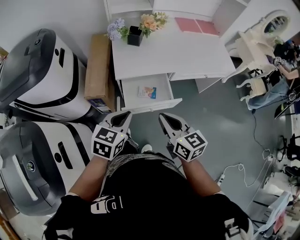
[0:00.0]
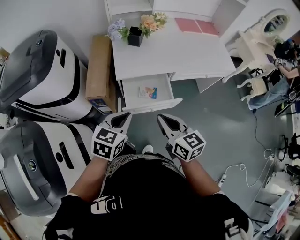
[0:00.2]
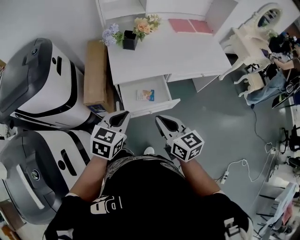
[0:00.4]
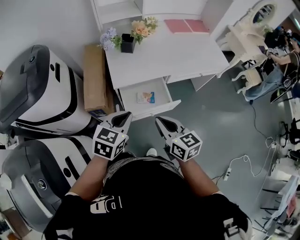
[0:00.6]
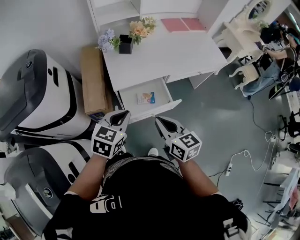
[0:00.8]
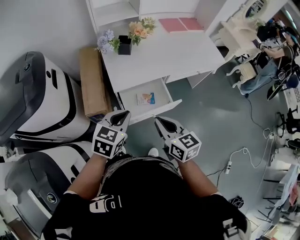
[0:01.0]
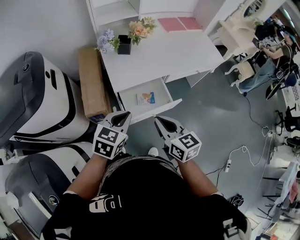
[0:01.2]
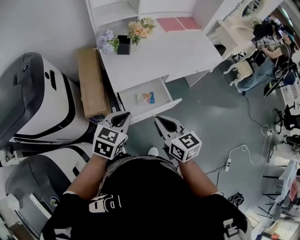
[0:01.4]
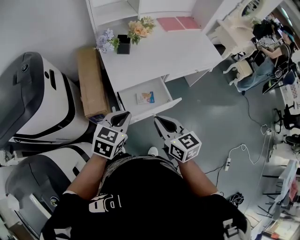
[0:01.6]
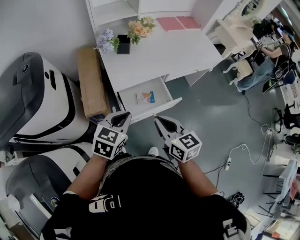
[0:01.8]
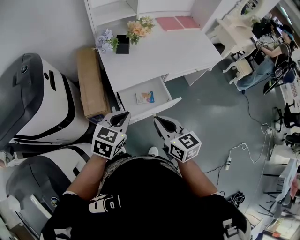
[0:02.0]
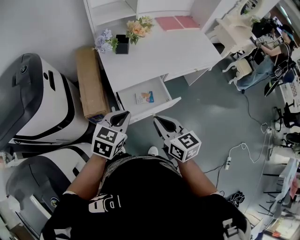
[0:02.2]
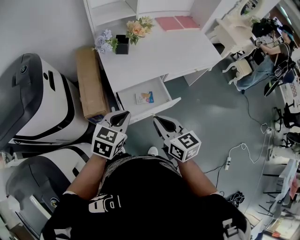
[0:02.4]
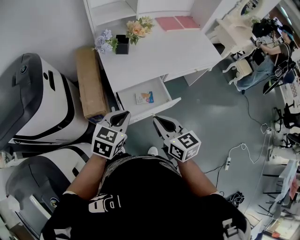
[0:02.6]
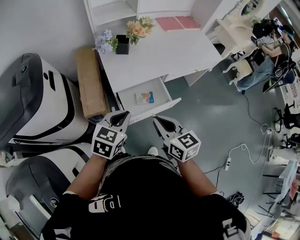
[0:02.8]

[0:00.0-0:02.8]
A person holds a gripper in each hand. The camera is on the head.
0:00.0 to 0:01.4: The grippers both shift to the left by some 5 cm.
0:01.4 to 0:02.8: Both grippers stay put.

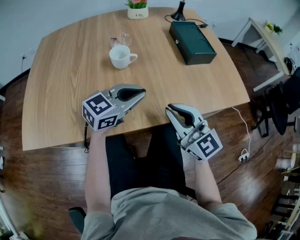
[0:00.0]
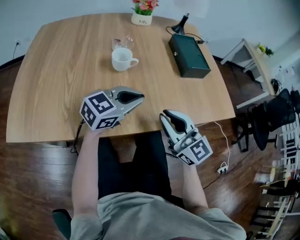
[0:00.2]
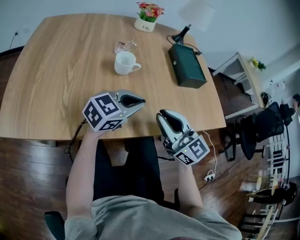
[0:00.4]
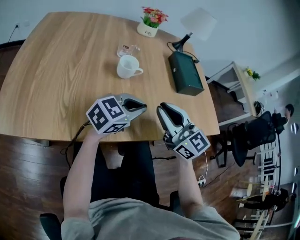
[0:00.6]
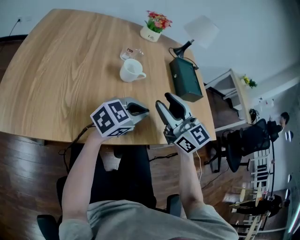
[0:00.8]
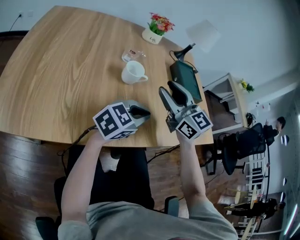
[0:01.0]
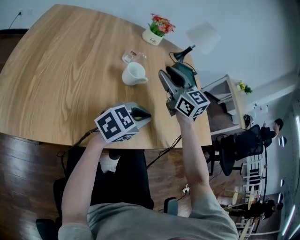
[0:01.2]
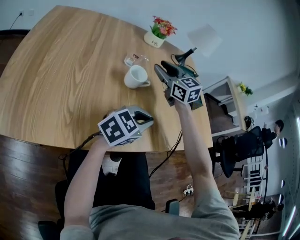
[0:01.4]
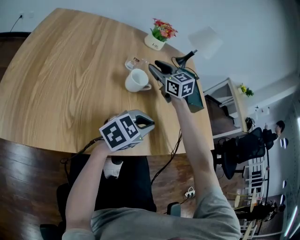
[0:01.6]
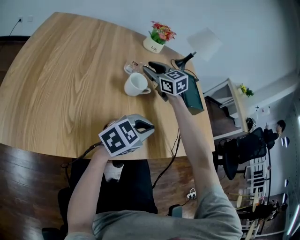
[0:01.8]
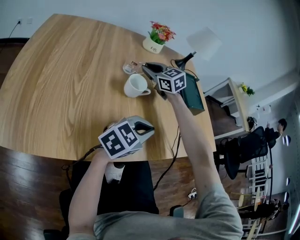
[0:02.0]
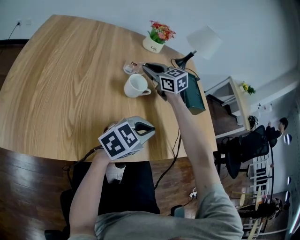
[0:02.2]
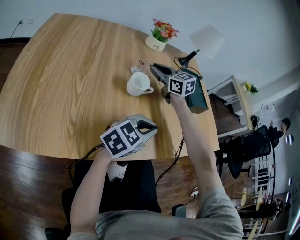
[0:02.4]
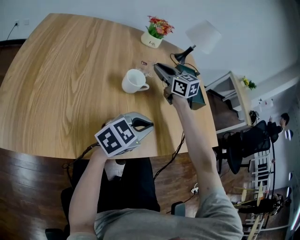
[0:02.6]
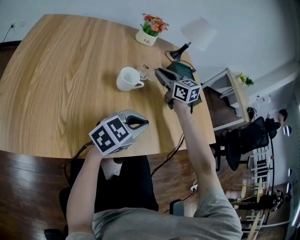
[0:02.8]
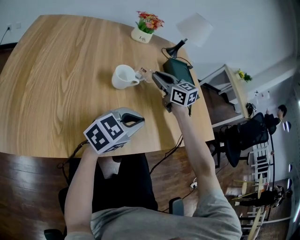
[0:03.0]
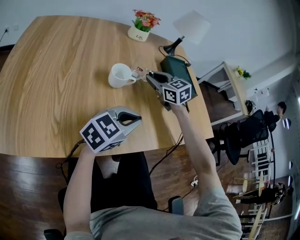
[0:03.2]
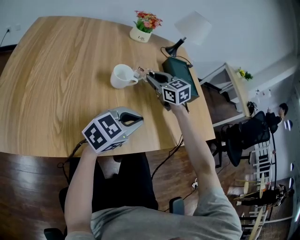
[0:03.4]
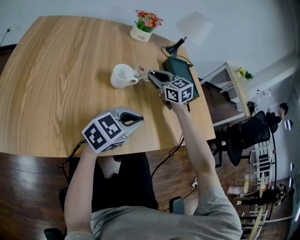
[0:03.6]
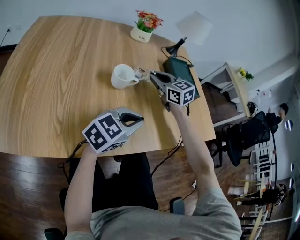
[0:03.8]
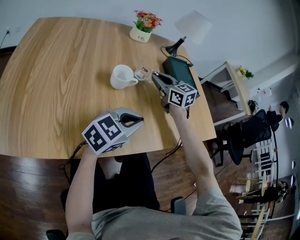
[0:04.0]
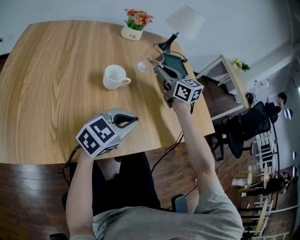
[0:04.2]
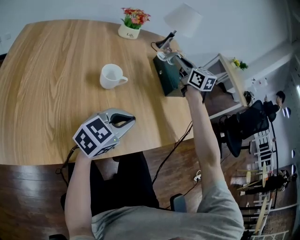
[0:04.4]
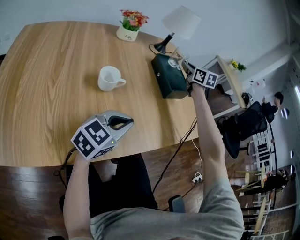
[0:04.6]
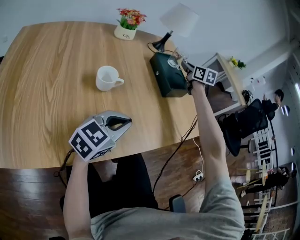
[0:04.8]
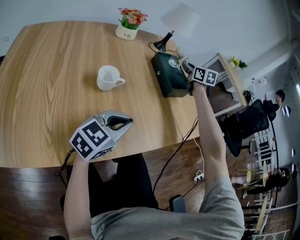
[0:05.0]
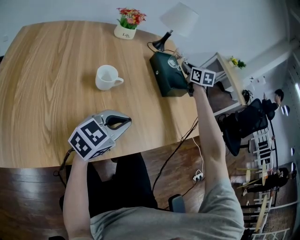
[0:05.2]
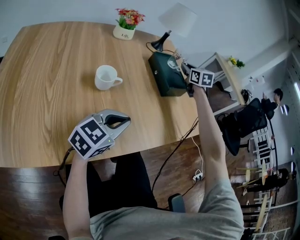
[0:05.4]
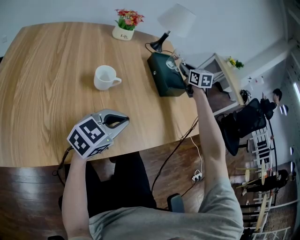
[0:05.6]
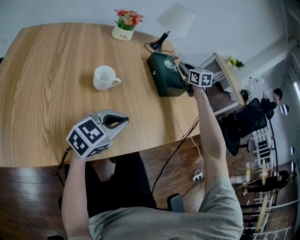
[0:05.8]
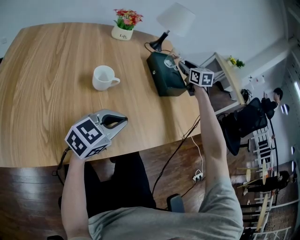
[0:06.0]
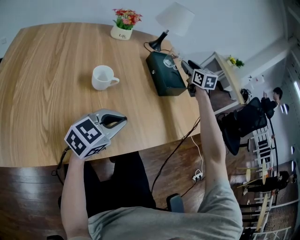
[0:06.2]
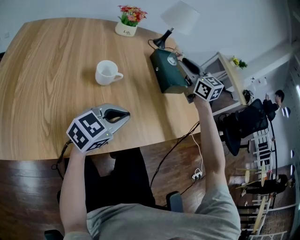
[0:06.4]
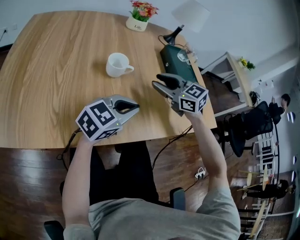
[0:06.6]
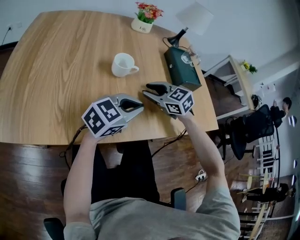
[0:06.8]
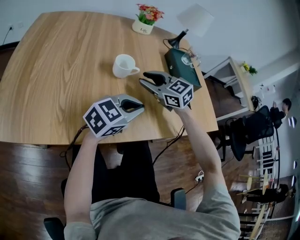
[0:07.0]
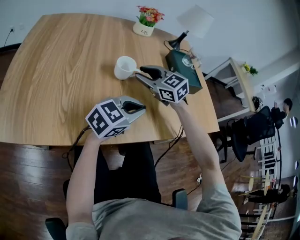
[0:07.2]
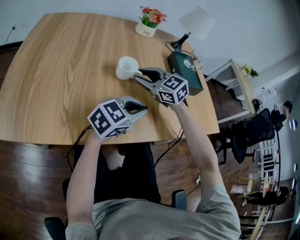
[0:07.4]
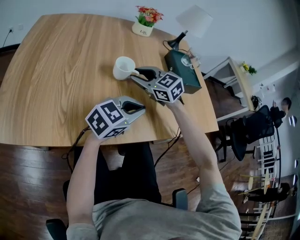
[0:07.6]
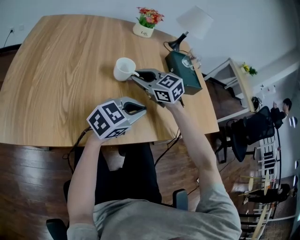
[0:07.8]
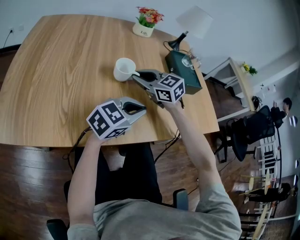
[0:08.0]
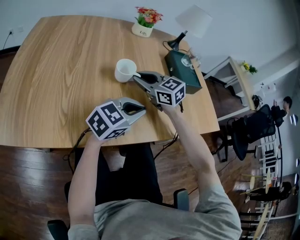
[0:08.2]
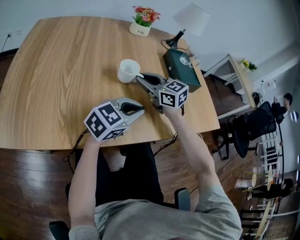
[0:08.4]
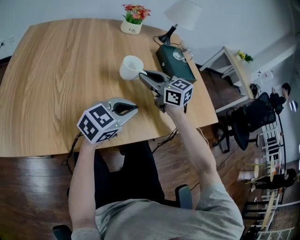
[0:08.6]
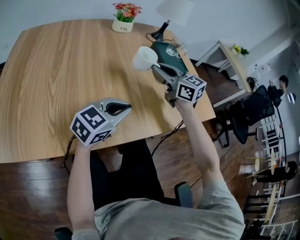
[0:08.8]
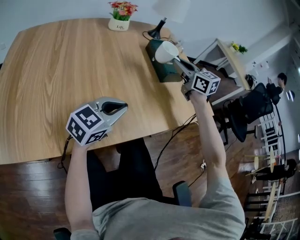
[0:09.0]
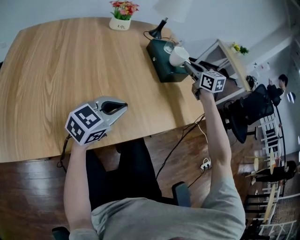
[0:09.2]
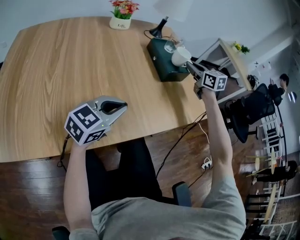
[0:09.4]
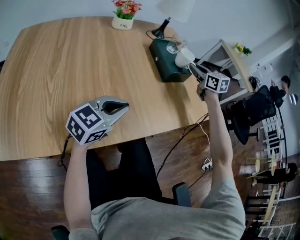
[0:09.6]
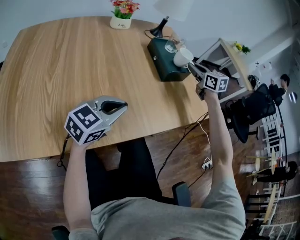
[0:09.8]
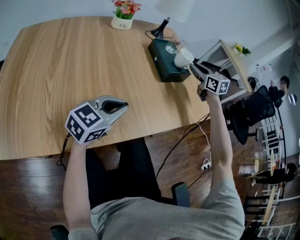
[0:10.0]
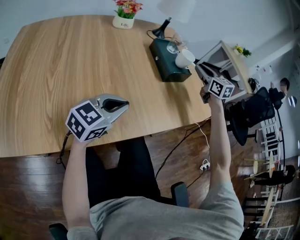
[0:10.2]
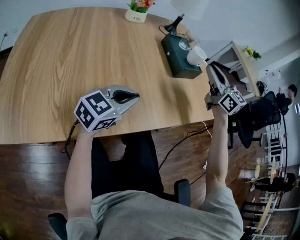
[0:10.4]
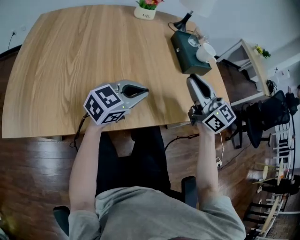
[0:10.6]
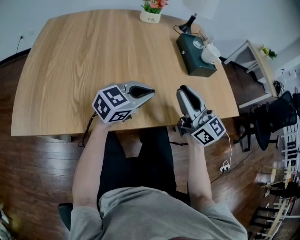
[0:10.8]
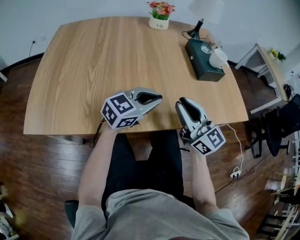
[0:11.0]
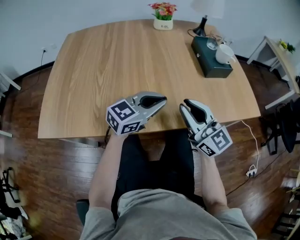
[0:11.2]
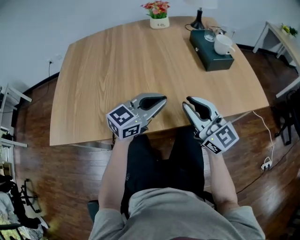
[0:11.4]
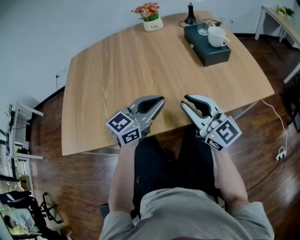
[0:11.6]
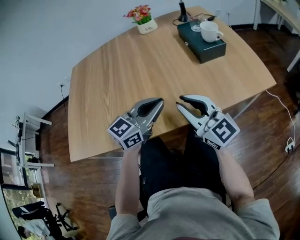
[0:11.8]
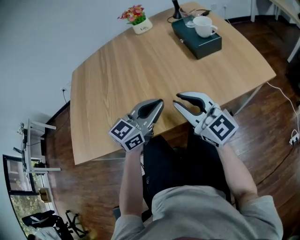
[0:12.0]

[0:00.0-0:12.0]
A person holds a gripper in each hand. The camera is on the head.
0:00.0 to 0:01.6: The right gripper shifts approximately 35 cm forward and to the left, swivels roughly 20 degrees, and opens its fingers.
0:01.6 to 0:03.0: The right gripper shifts about 10 cm to the right.
0:03.0 to 0:04.4: The right gripper goes approximately 15 cm to the right, upward and forward.
0:04.4 to 0:06.0: The right gripper moves to the right and forward, roughly 15 cm, turns by roughly 20 degrees, and opens its fingers.
0:06.0 to 0:07.6: The right gripper travels to the left and backward by roughly 40 cm, and rotates some 50 degrees.
0:07.6 to 0:09.0: The right gripper moves to the right and upward, some 25 cm, and changes its angle by roughly 40 degrees.
0:09.0 to 0:10.4: The right gripper moves to the right and upward, roughly 10 cm.
0:10.4 to 0:12.0: The right gripper moves backward, to the left and downward, some 25 cm.

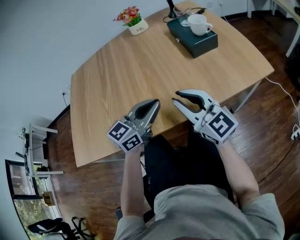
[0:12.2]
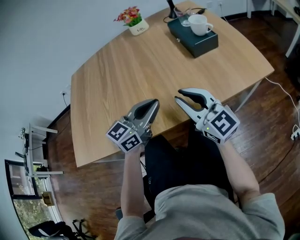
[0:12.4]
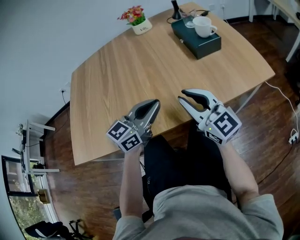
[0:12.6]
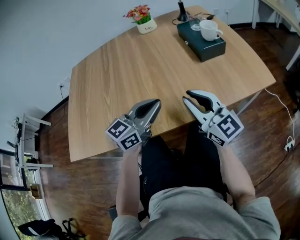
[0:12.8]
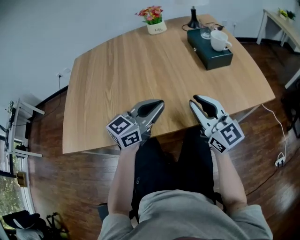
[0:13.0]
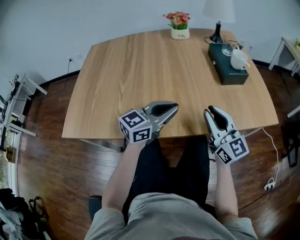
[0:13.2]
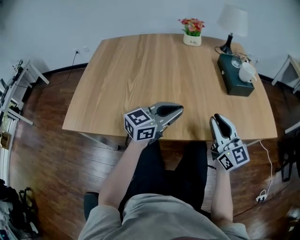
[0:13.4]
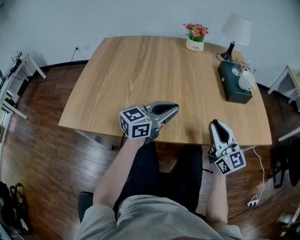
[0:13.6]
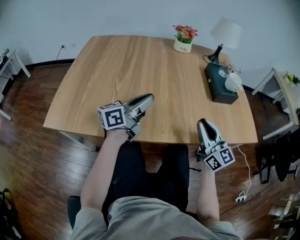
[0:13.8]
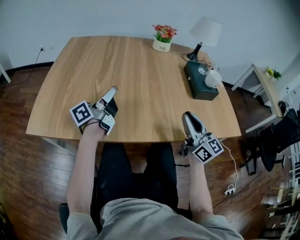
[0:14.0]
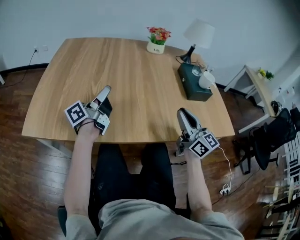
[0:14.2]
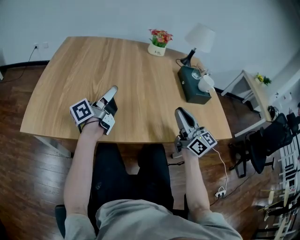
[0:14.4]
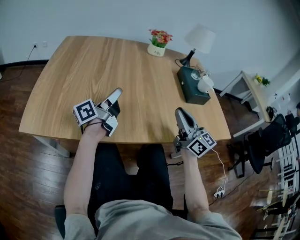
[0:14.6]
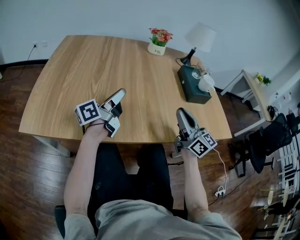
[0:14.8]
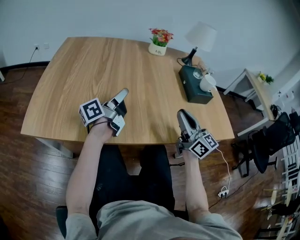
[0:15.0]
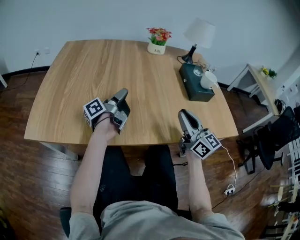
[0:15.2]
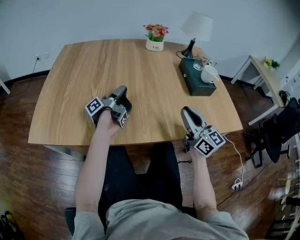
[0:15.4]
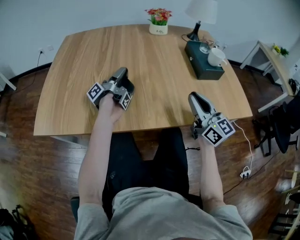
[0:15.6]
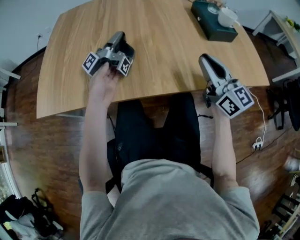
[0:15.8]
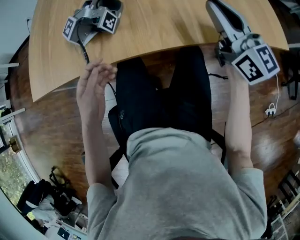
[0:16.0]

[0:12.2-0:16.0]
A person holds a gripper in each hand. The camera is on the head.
0:12.2 to 0:13.4: There are only small adjustments of the grippers.
0:13.4 to 0:14.8: The left gripper heads to the left and forward, covering about 15 cm, and twists approximately 50 degrees counterclockwise, seen from behind.
0:14.8 to 0:16.0: The left gripper heads forward, covering some 10 cm, and rotates some 40 degrees.

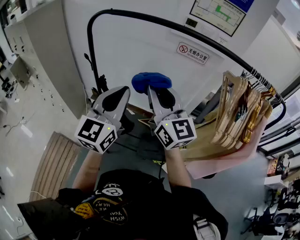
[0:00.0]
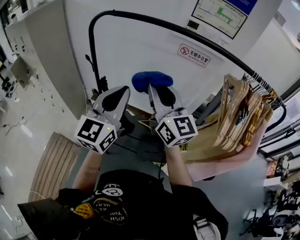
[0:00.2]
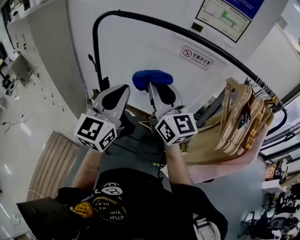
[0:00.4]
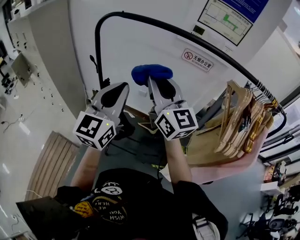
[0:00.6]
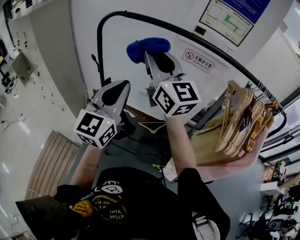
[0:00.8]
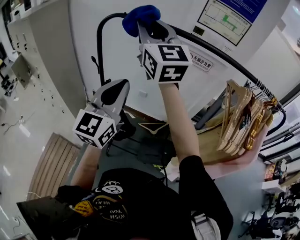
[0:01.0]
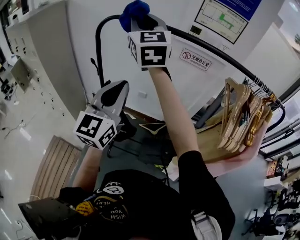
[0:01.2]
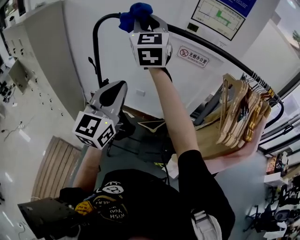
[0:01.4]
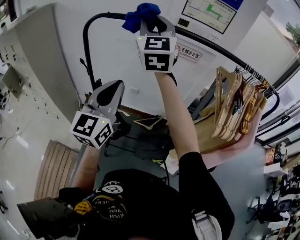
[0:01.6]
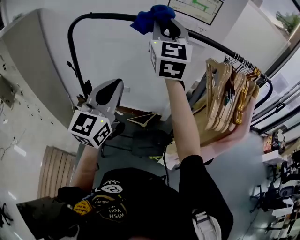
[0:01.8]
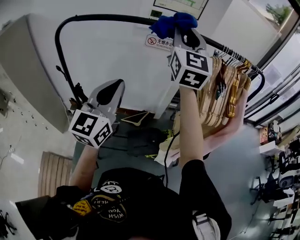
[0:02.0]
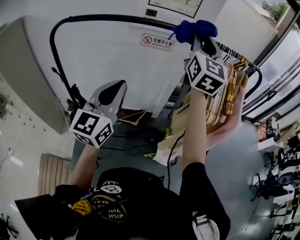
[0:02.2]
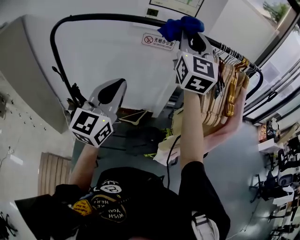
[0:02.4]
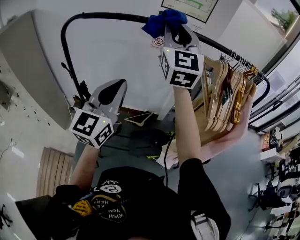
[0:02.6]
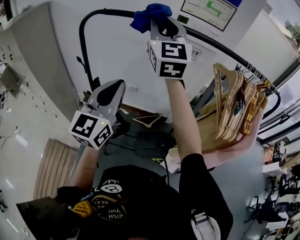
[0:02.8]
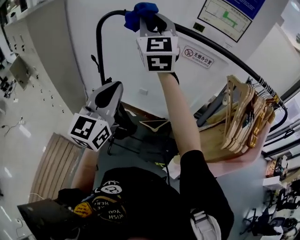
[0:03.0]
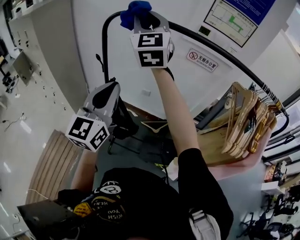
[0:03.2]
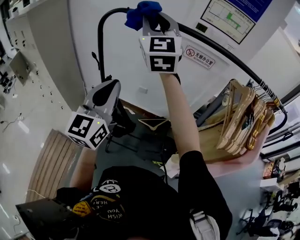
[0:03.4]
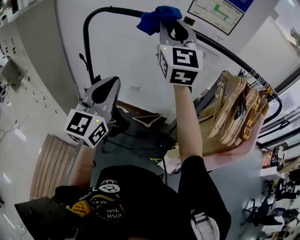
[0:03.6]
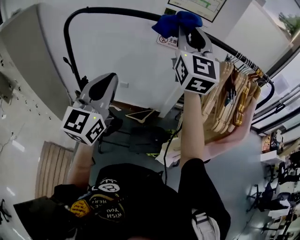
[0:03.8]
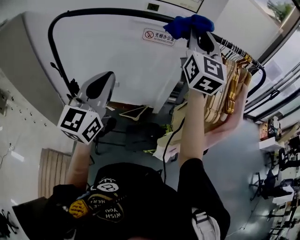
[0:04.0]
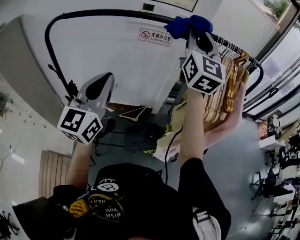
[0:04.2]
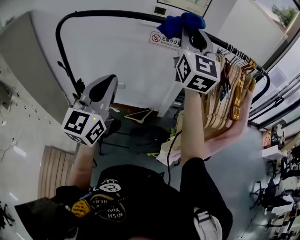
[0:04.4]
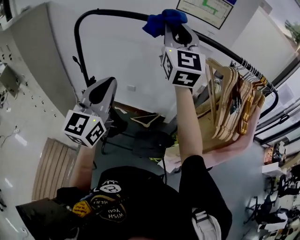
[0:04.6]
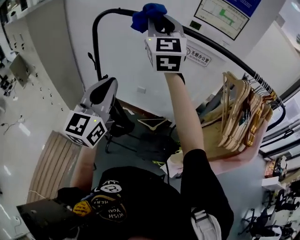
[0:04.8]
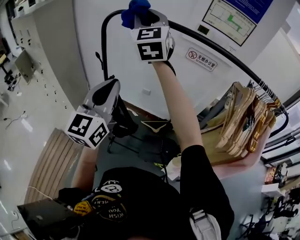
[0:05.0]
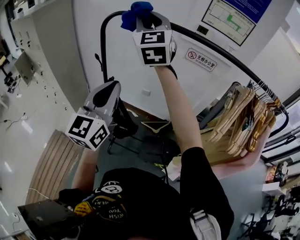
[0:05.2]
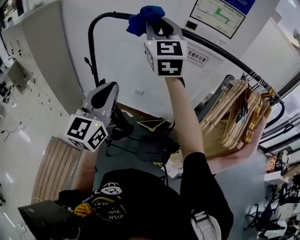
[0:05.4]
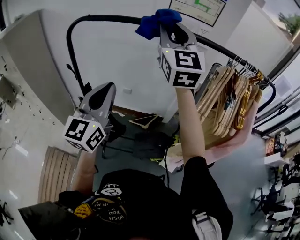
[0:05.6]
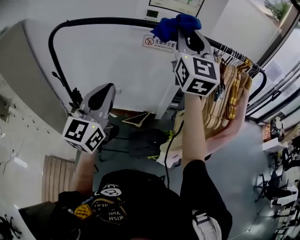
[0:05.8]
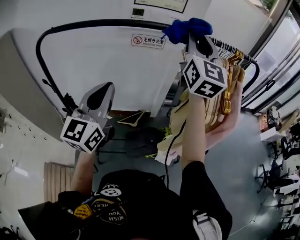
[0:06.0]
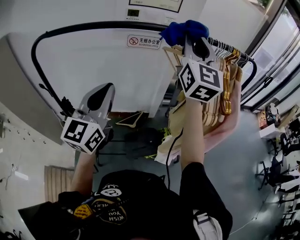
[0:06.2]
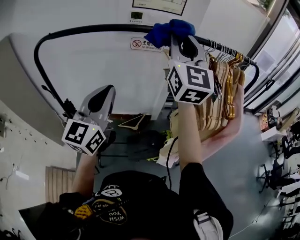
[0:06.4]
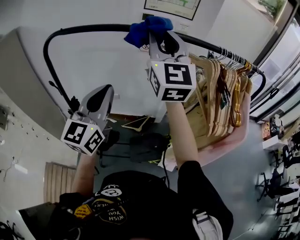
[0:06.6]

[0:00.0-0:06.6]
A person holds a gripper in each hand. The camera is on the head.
0:00.0 to 0:01.6: The right gripper goes roughly 20 cm upward and forward, and turns by some 30 degrees.
0:03.2 to 0:05.0: The right gripper reaches some 40 cm to the right, then returns, while the left gripper moves some 15 cm to the right and comes back.
0:05.0 to 0:06.6: The left gripper shifts by roughly 15 cm. Meanwhile the right gripper changes its angle by some 20 degrees.
